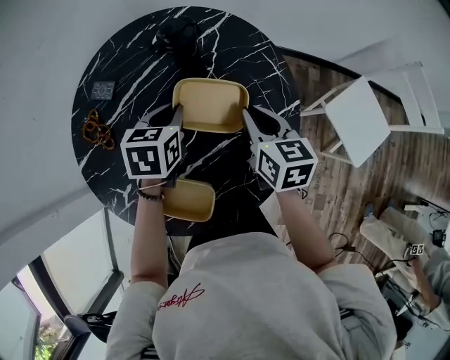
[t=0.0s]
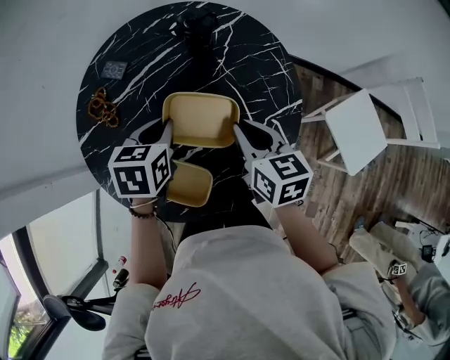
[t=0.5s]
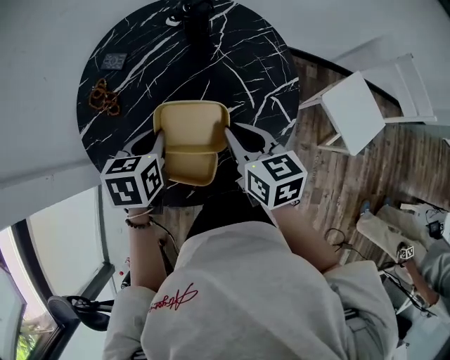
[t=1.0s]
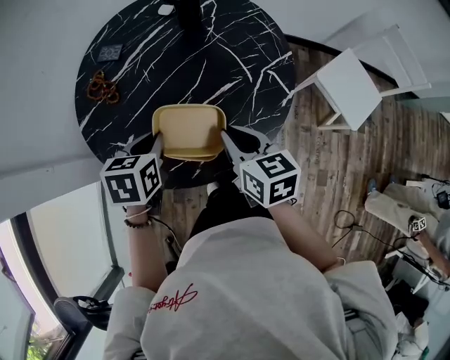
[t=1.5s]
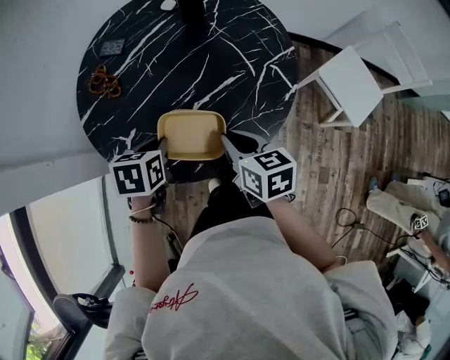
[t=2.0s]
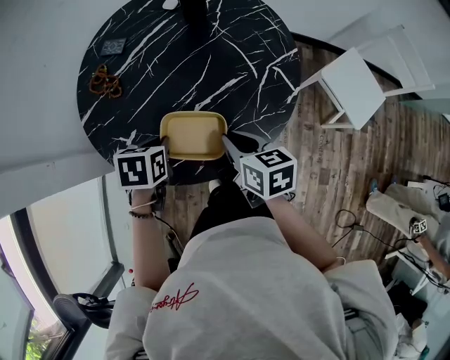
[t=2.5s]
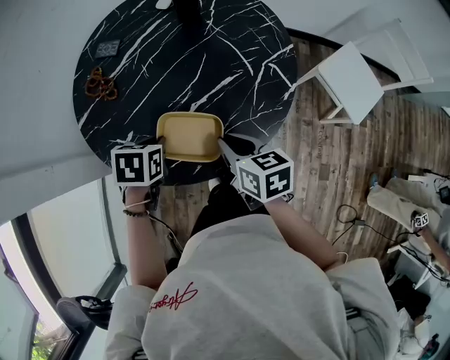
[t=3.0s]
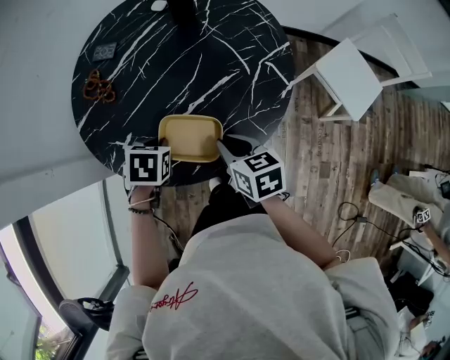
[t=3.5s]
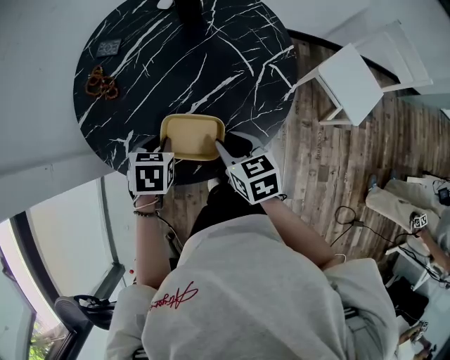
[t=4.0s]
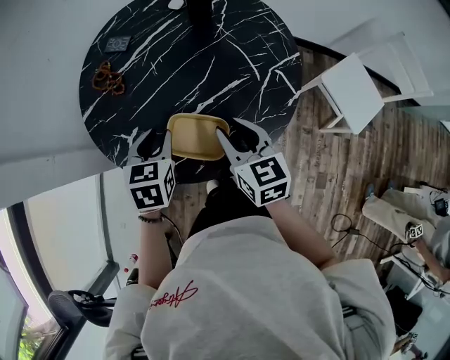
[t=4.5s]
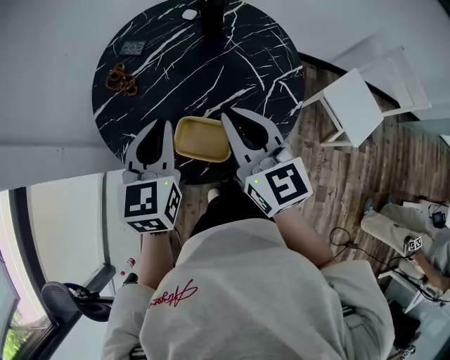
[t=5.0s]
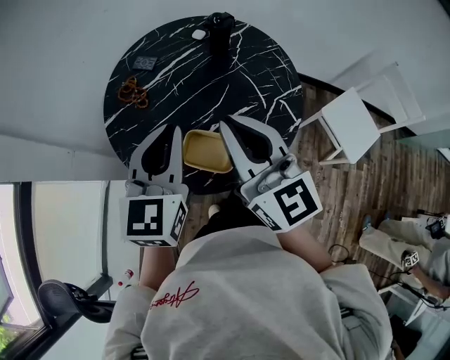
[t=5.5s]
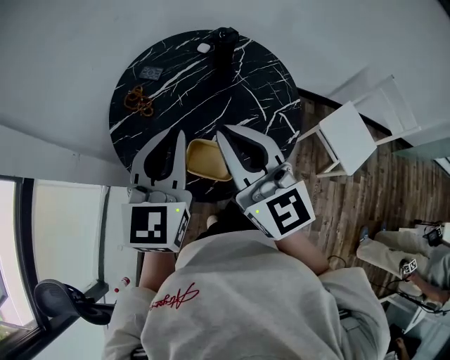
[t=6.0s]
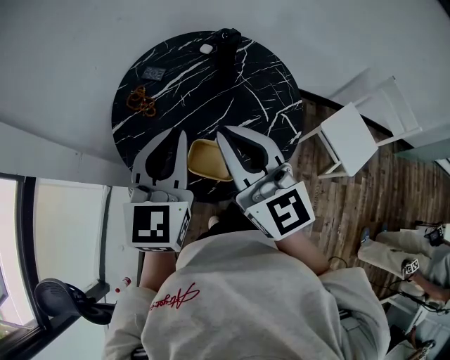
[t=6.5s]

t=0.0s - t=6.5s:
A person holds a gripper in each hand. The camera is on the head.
t=0.0s - t=2.0s: Both grippers move backward and to the left, approximately 25 cm.
t=2.0s - t=4.5s: The left gripper swivels approximately 20 degrees, and opens up. Meanwhile the right gripper opens up.
t=4.5s - t=6.5s: Both grippers travel together upward, roughly 25 cm. The left gripper tilts its fingers about 40 degrees upward, and closes up. Meanwhile the right gripper points its fingers some 30 degrees further upward, and closes up.

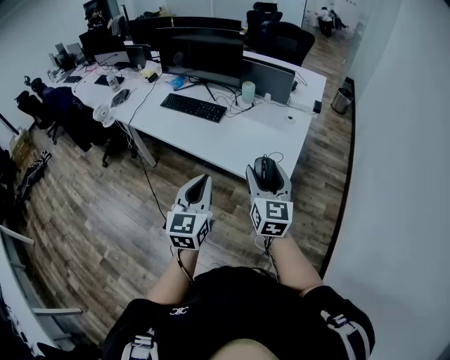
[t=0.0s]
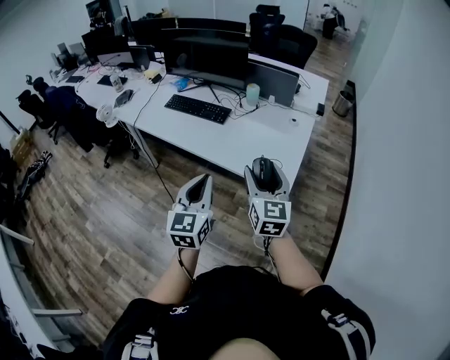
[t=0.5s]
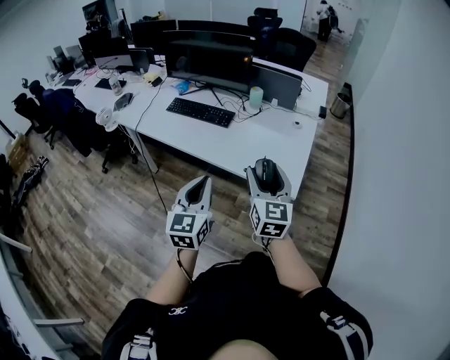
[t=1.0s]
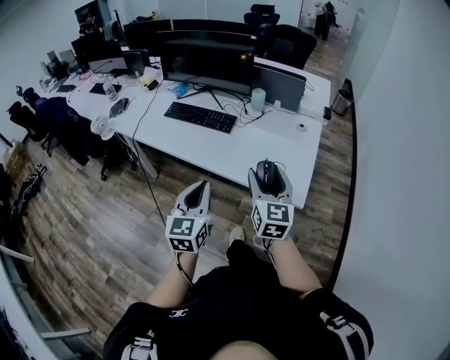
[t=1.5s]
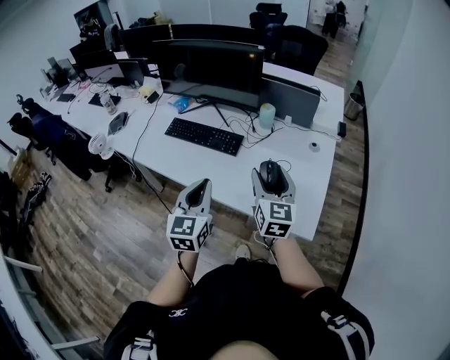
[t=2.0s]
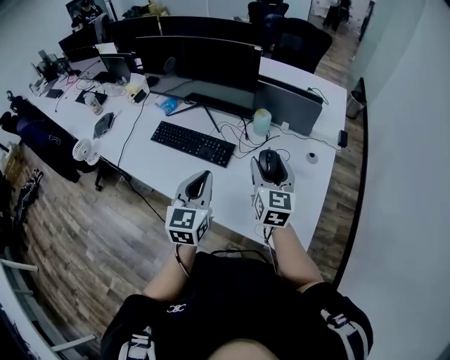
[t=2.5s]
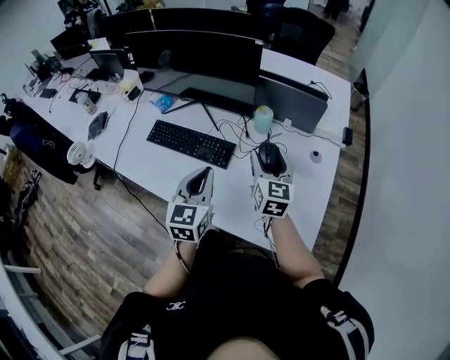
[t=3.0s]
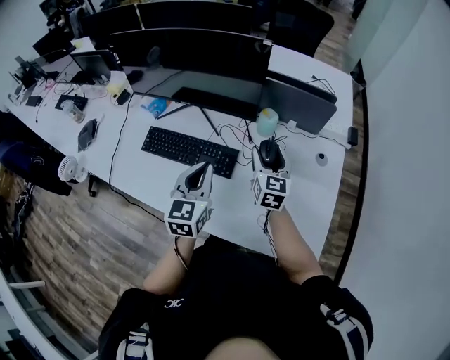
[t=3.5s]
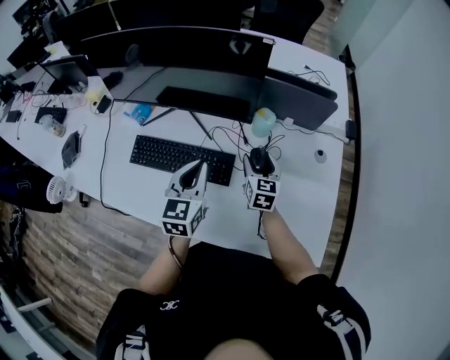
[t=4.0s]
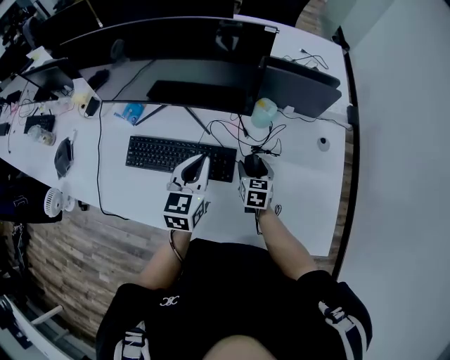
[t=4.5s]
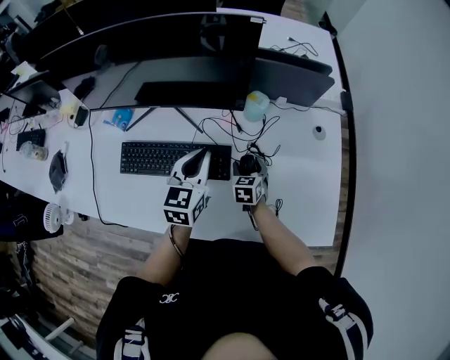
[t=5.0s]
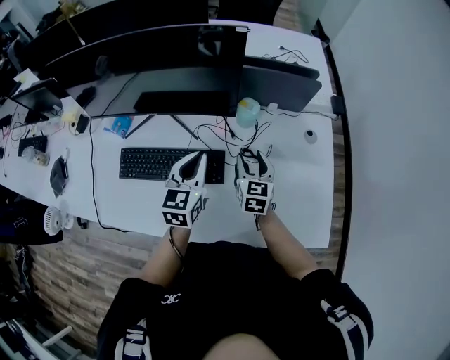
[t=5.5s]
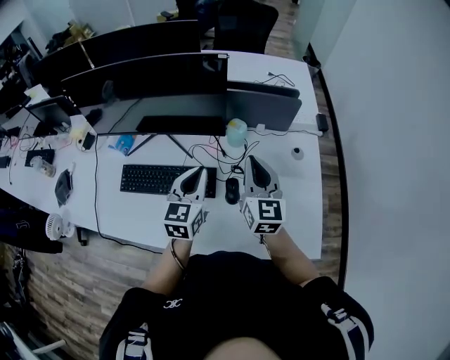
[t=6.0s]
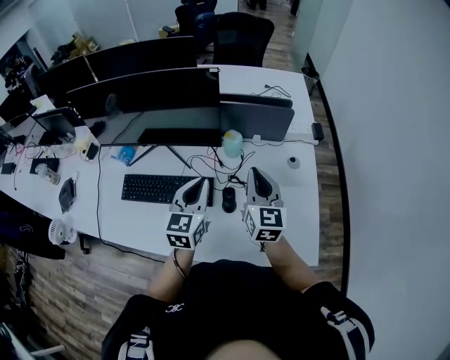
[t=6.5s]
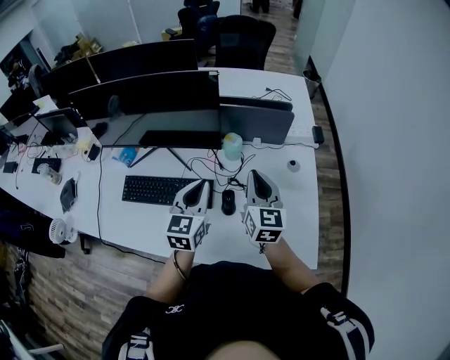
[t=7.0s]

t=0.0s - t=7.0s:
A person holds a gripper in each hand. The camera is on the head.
t=0.0s - t=2.0s: The grippers both shift forward and to the left by approximately 30 cm.
t=2.0s - t=3.5s: The two grippers go approximately 30 cm forward.
t=3.5s - t=5.0s: The right gripper travels downward by approximately 25 cm, and points its fingers some 30 degrees further downward, while the left gripper moves forward and downward, about 15 cm.
t=5.0s - t=7.0s: The left gripper goes about 15 cm to the right, upward and backward. The right gripper moves upward, approximately 30 cm, tilts its fingers about 40 degrees upward, and closes.

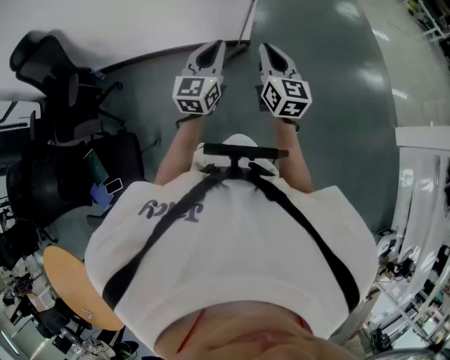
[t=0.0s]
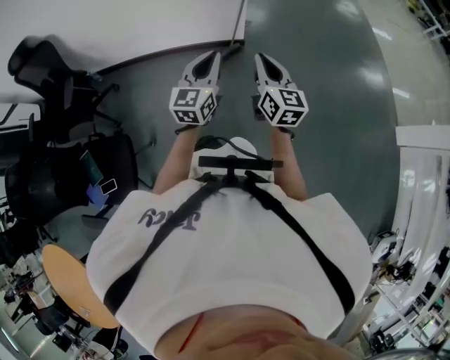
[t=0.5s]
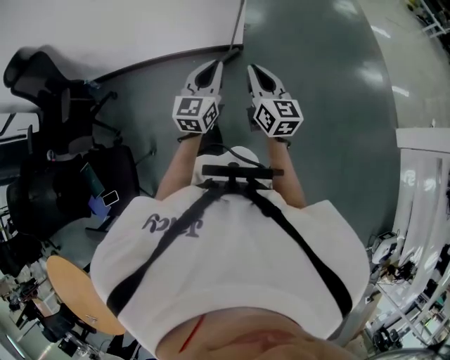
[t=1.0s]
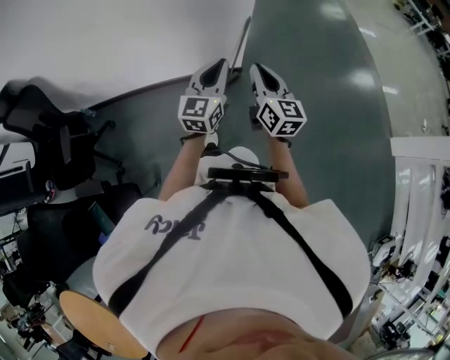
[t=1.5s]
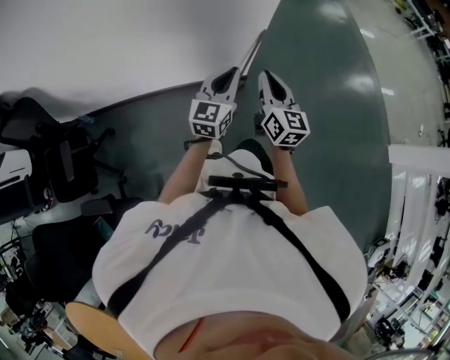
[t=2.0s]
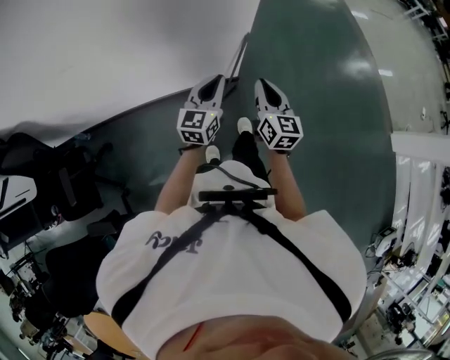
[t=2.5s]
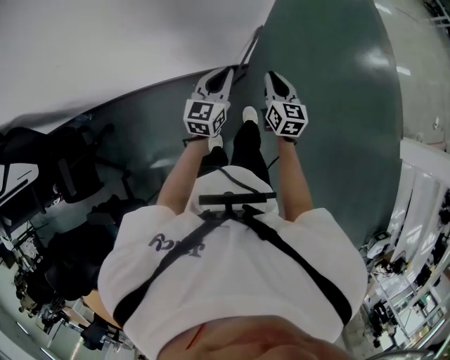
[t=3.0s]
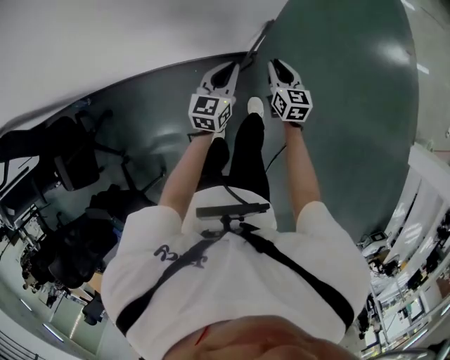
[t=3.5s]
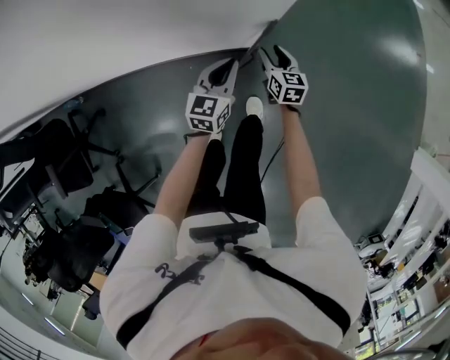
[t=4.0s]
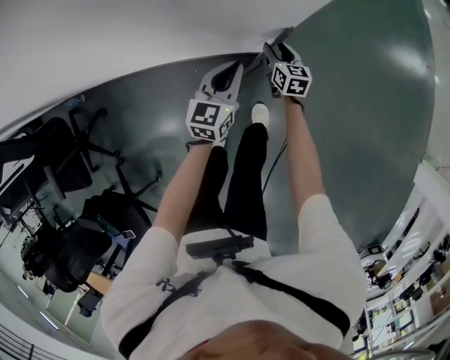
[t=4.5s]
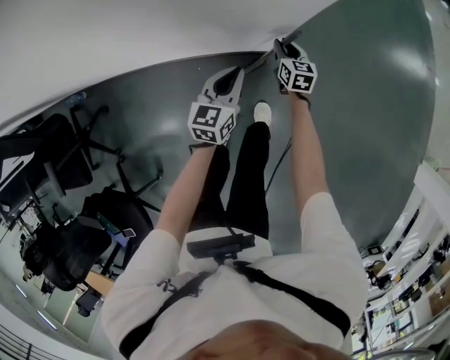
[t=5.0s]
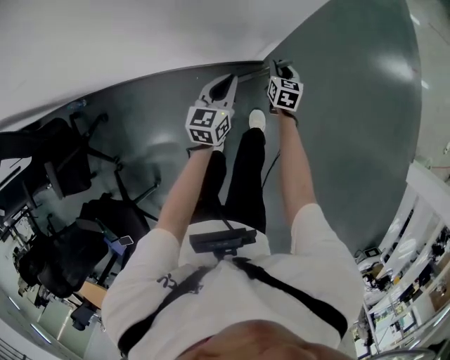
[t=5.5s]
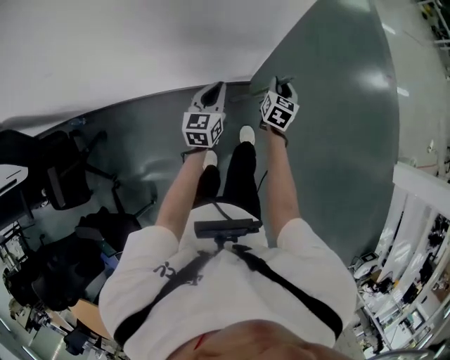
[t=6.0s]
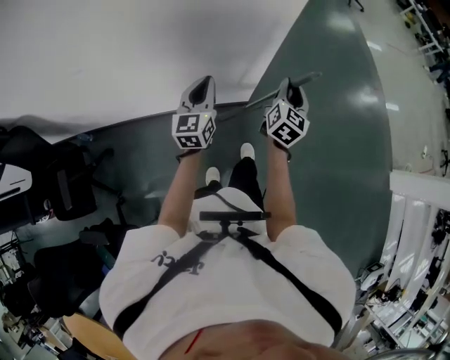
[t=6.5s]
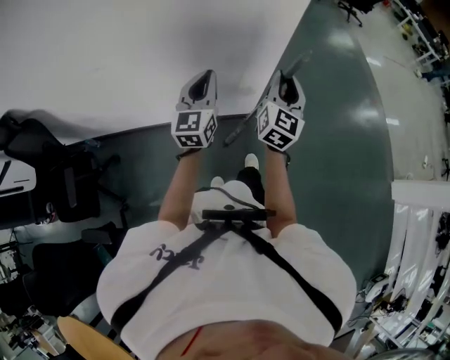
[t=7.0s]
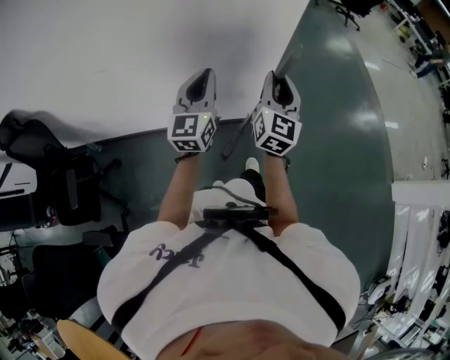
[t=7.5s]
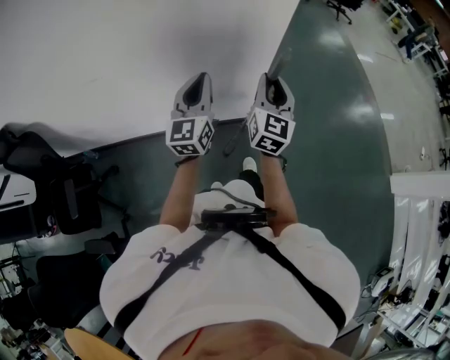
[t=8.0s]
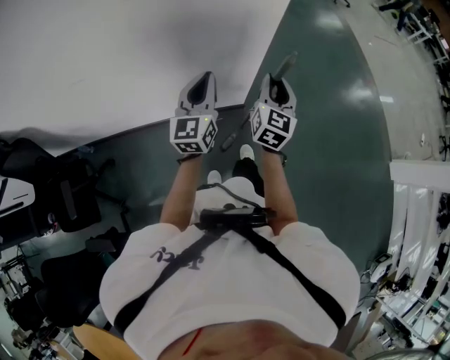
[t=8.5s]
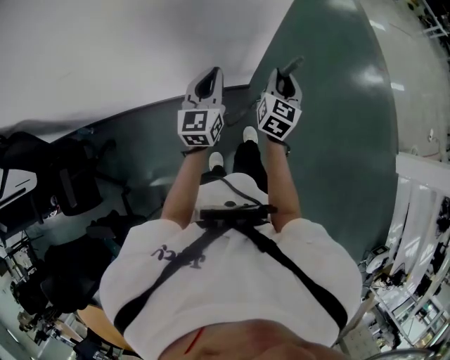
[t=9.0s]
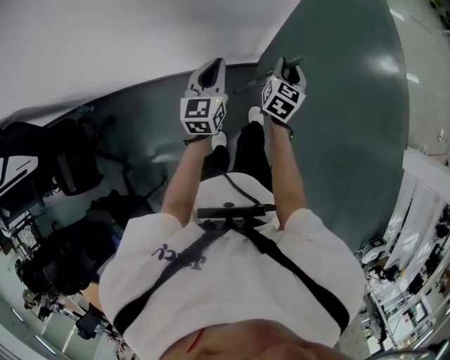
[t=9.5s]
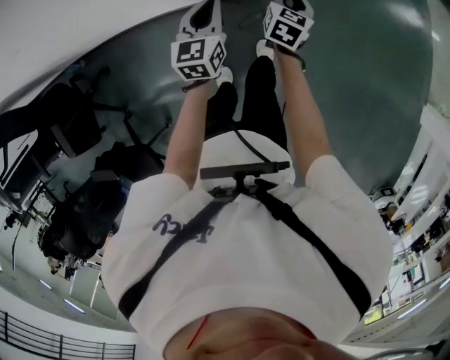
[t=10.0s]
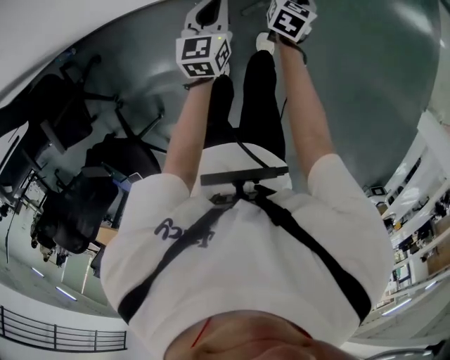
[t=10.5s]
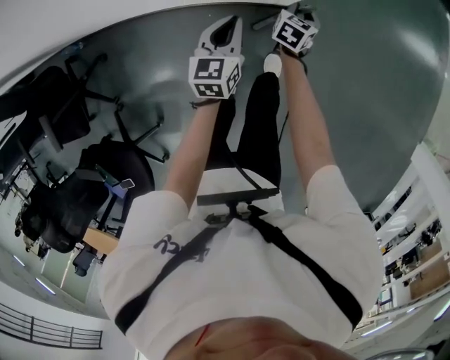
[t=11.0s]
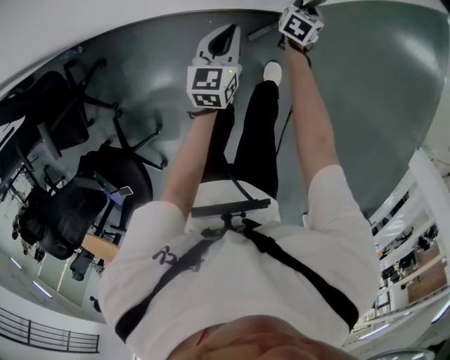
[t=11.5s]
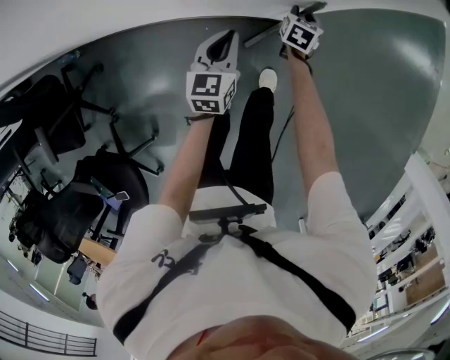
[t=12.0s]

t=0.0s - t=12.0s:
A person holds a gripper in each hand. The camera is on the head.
t=0.0s - t=2.0s: The two grippers go approximately 30 cm forward.
t=2.0s - t=4.0s: The two grippers go about 50 cm downward and forward. The right gripper swivels approximately 30 degrees, and opens. Meanwhile the left gripper turns by roughly 20 degrees.
t=4.0s - t=6.0s: The right gripper heads upward and backward, covering about 20 cm, and rotates some 30 degrees. Meanwhile the left gripper travels upward, to the left and backward by about 15 cm.
t=6.0s - t=8.0s: The right gripper travels upward and backward by approximately 40 cm, and tilts its fingers approximately 40 degrees upward. The left gripper shifts roughly 30 cm upward, and turns by some 30 degrees.
t=8.0s - t=10.0s: Both grippers travel together downward, approximately 35 cm. The right gripper angles its fingers downward, by some 40 degrees. The left gripper turns by some 30 degrees.
t=10.0s - t=12.0s: The left gripper moves downward, some 10 cm. The right gripper is displaced downward and forward by approximately 20 cm.

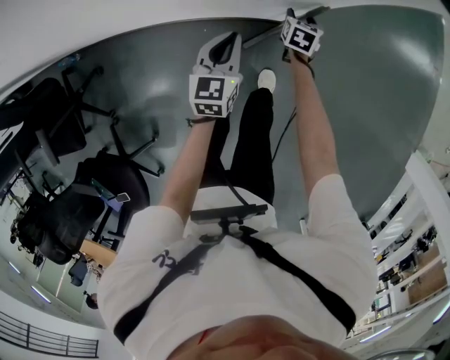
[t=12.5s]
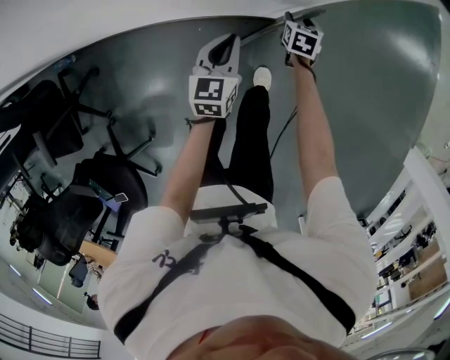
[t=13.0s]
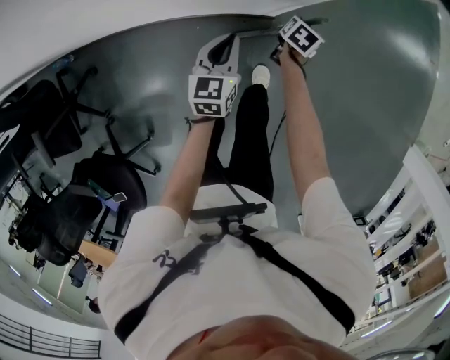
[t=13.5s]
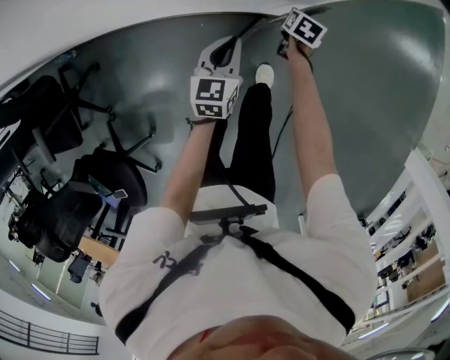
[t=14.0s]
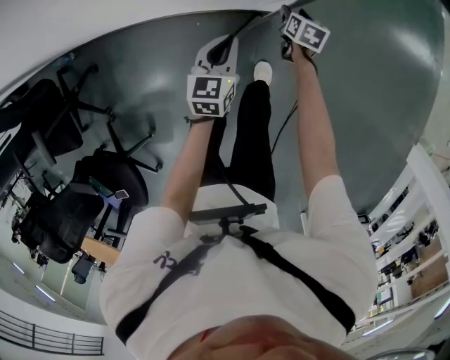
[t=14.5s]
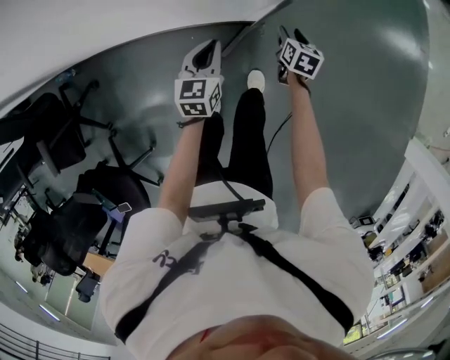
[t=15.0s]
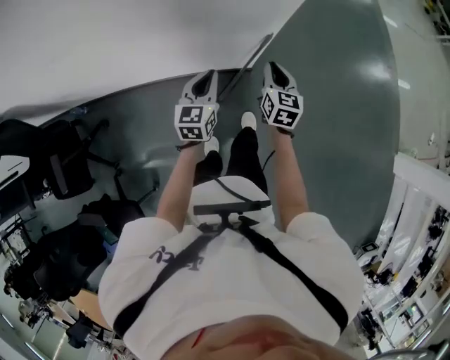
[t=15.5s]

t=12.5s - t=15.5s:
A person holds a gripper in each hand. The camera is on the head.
t=12.5s - t=14.0s: The right gripper closes its fingers.
t=14.0s - t=15.5s: The right gripper shifts some 35 cm upward and backward, tips its fingers upward by about 30 degrees, and opens, then closes again; the left gripper is displaced upward by roughly 20 cm.
